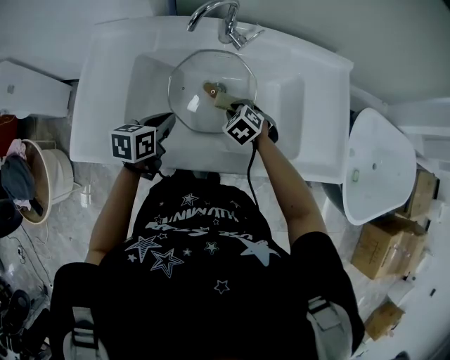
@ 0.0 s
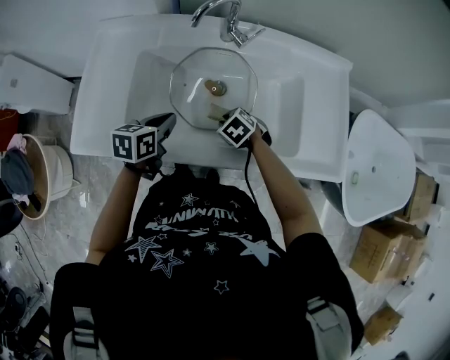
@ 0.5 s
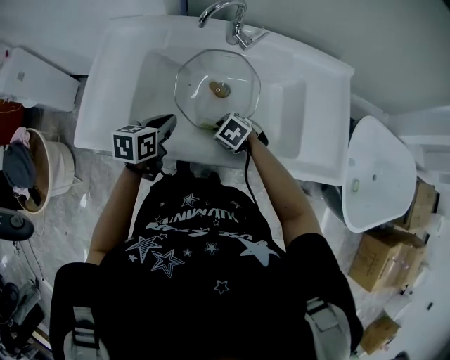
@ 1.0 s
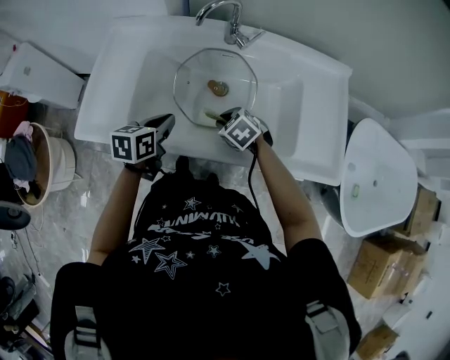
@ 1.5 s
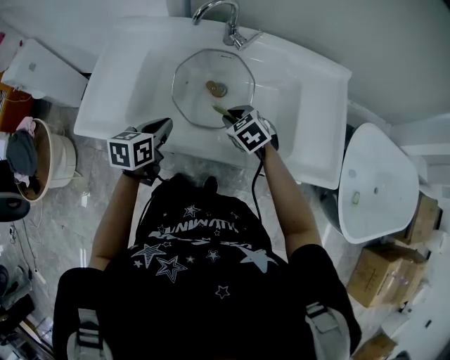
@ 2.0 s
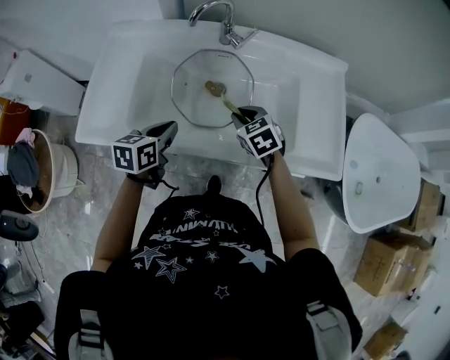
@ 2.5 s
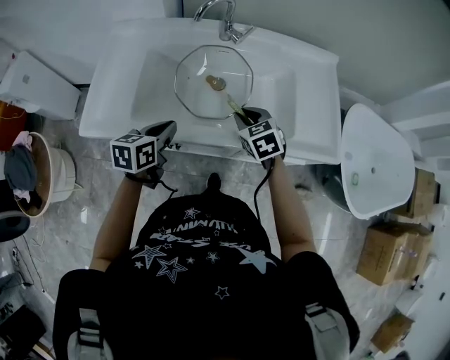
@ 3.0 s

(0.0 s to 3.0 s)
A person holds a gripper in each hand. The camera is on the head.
0.0 s - 1.5 s: The left gripper shifts by approximately 5 cm. The right gripper shifts by approximately 10 cm.
1.5 s - 3.0 s: The right gripper shifts approximately 10 cm upward, and rotates approximately 30 degrees, while the left gripper shifts approximately 5 cm backward.

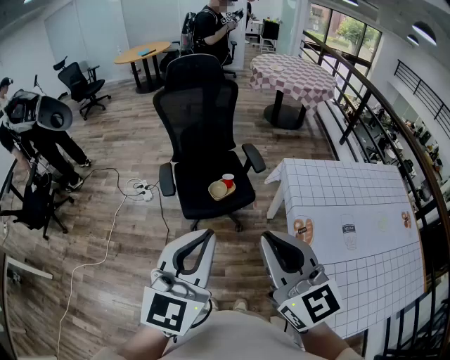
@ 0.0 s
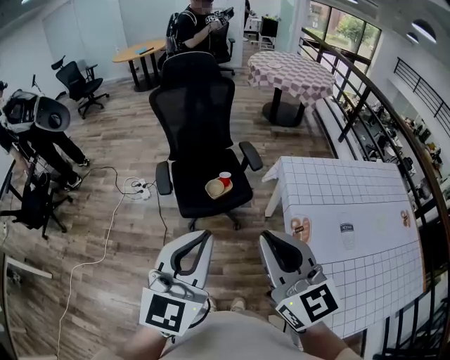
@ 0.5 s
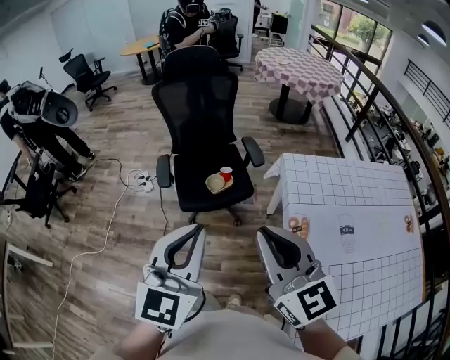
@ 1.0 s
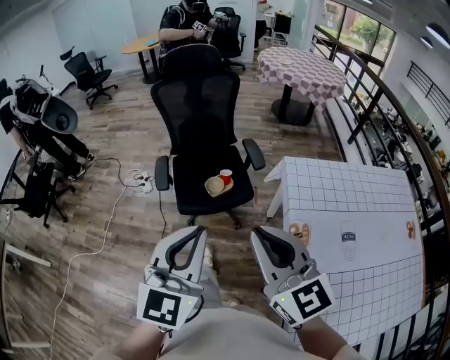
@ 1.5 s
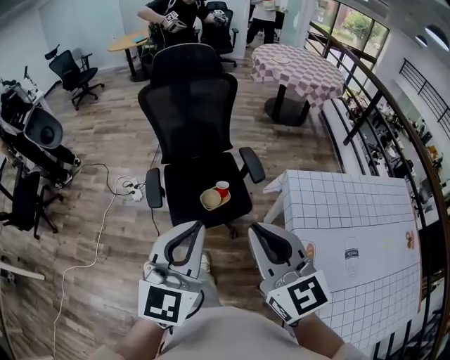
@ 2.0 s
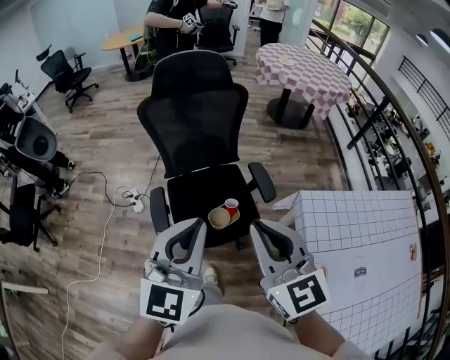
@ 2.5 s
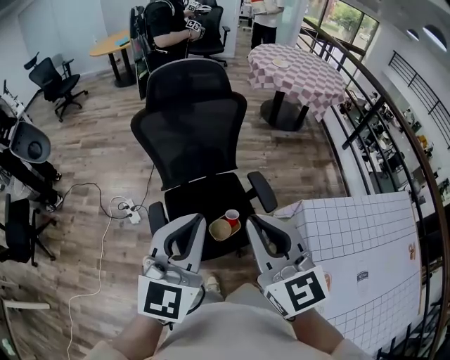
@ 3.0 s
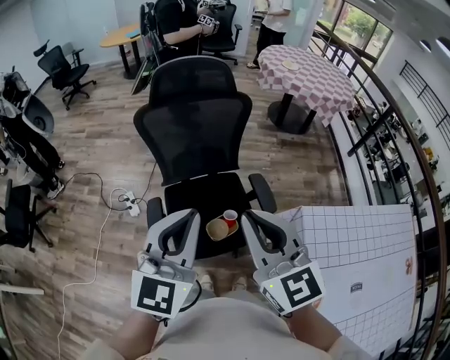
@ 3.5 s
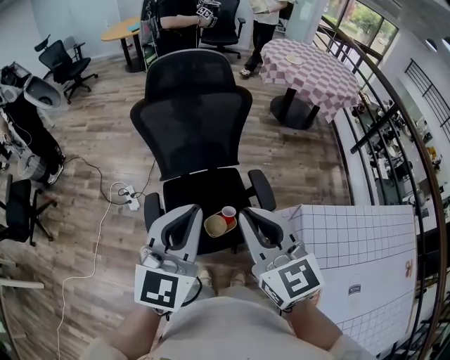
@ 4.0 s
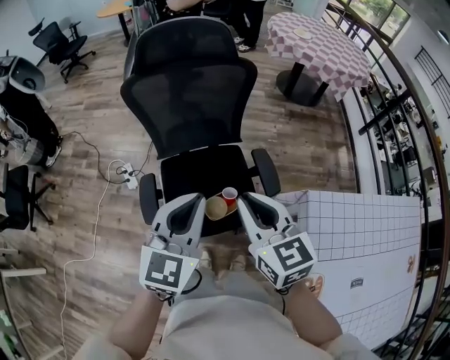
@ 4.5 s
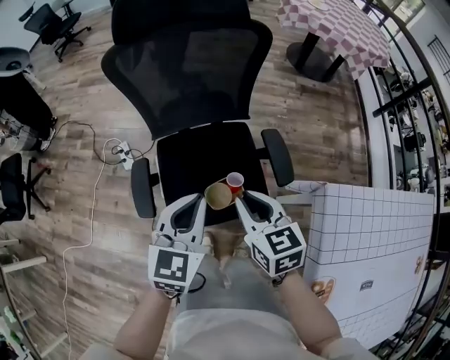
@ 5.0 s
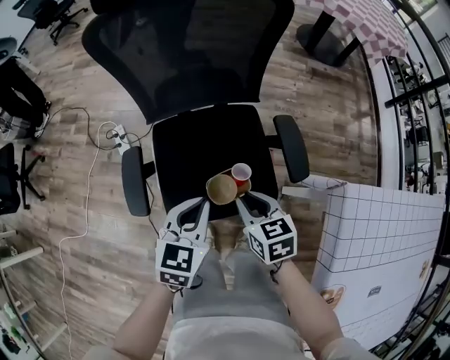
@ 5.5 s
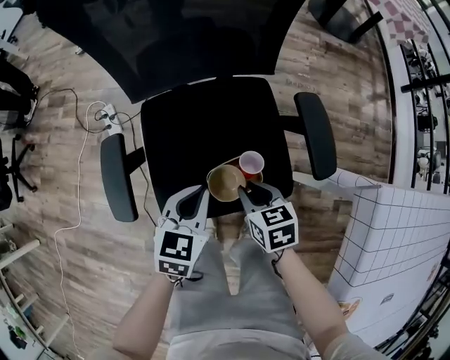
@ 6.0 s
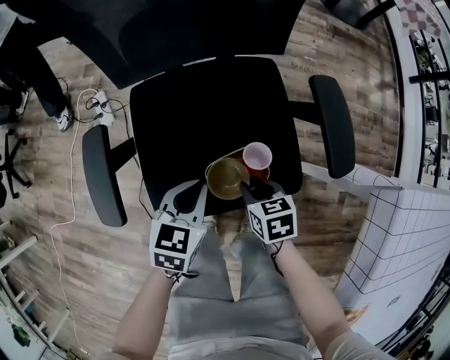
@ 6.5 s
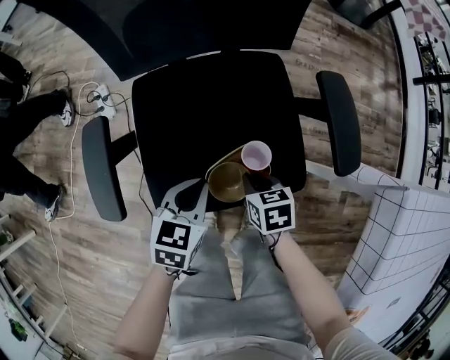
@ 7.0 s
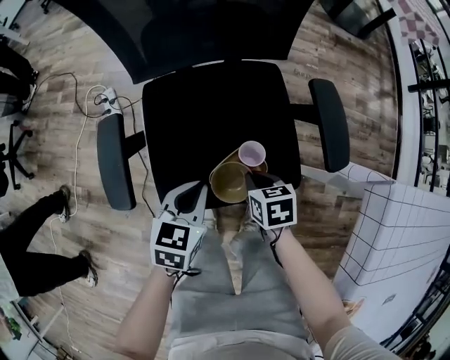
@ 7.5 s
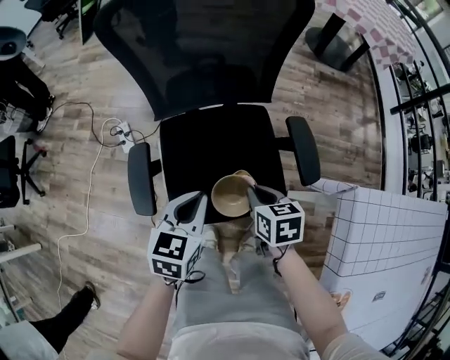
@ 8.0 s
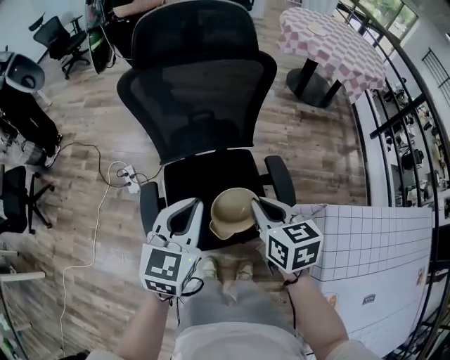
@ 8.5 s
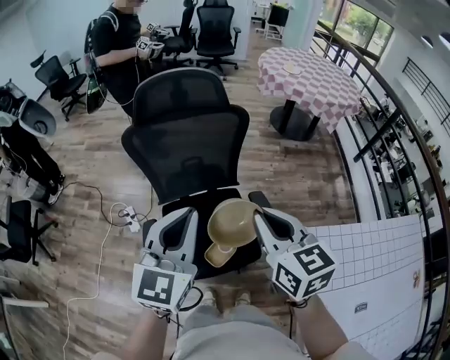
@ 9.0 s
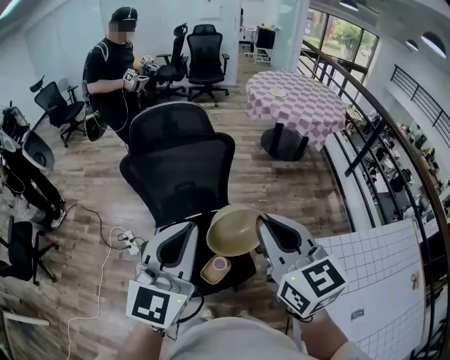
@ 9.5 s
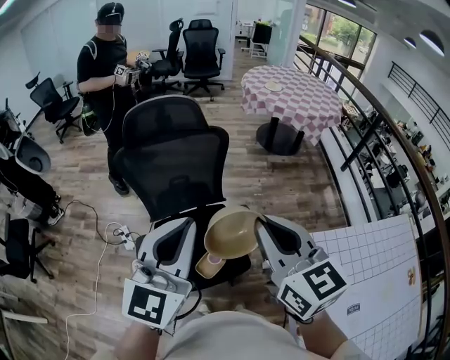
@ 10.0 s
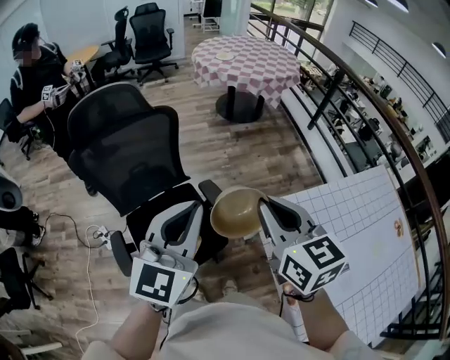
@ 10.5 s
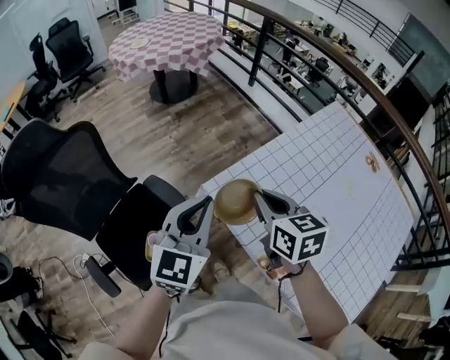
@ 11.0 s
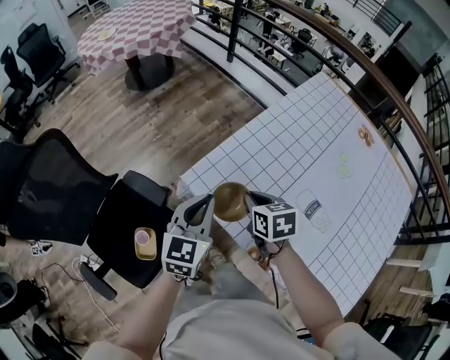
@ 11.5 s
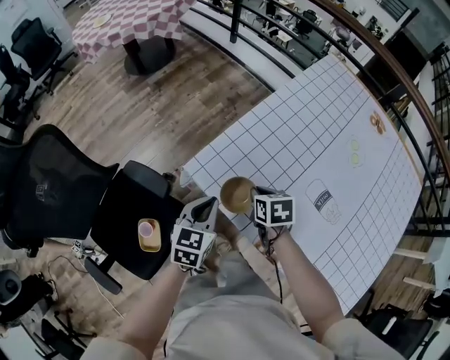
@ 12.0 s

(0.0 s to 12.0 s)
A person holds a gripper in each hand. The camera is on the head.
0.0 s - 2.0 s: Both grippers move forward, approximately 15 cm.
2.0 s - 4.0 s: The two grippers go about 25 cm forward.
4.0 s - 6.0 s: The grippers both shift downward by roughly 60 cm. The right gripper tilts its fingers about 40 degrees downward; the left gripper points its fingers approximately 30 degrees further downward.
6.0 s - 8.0 s: Both grippers move upward, roughly 10 cm.
8.0 s - 10.0 s: The grippers both shift upward by some 50 cm. The right gripper points its fingers about 40 degrees further upward; the left gripper points its fingers about 40 degrees further upward.
10.0 s - 12.0 s: The two grippers go roughly 40 cm downward. The left gripper tilts its fingers roughly 30 degrees downward, while the right gripper angles its fingers downward, by about 50 degrees.

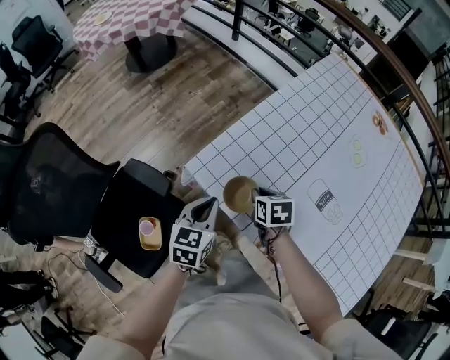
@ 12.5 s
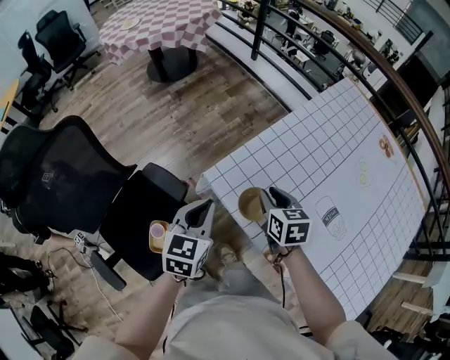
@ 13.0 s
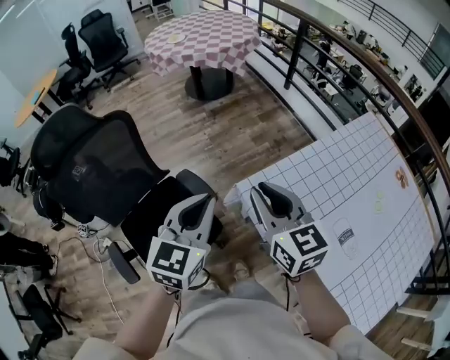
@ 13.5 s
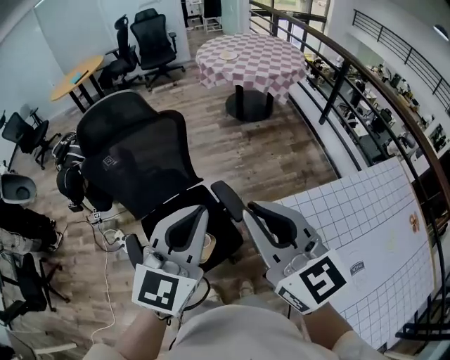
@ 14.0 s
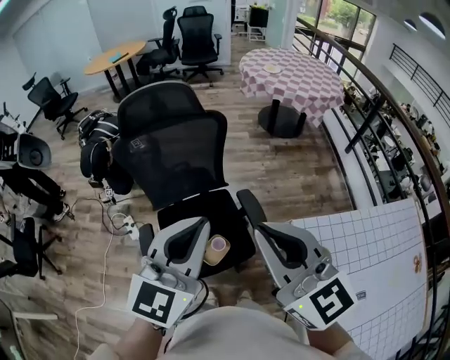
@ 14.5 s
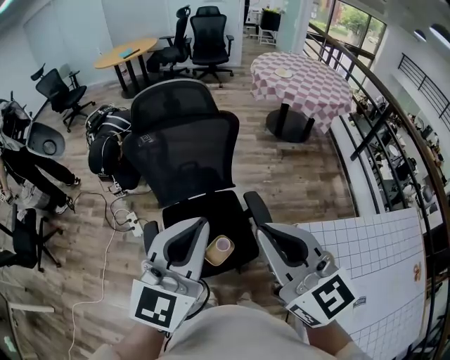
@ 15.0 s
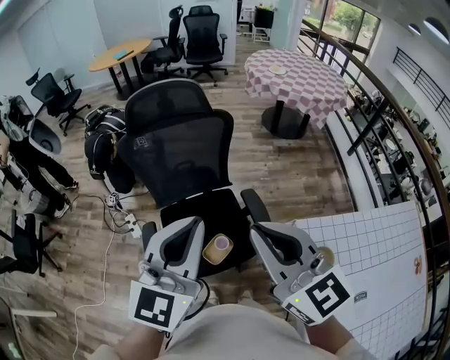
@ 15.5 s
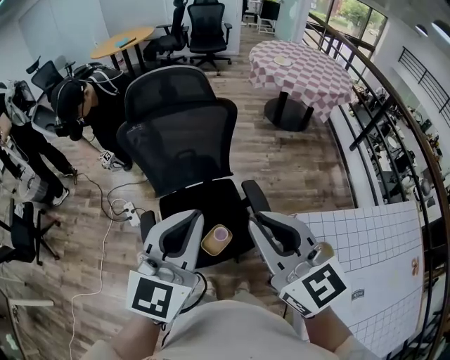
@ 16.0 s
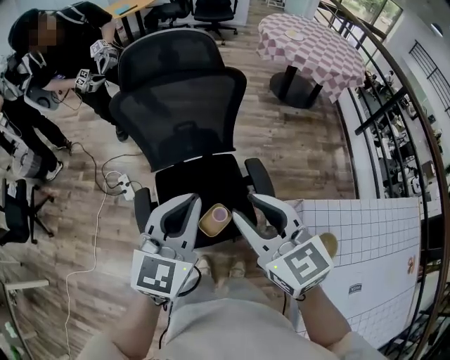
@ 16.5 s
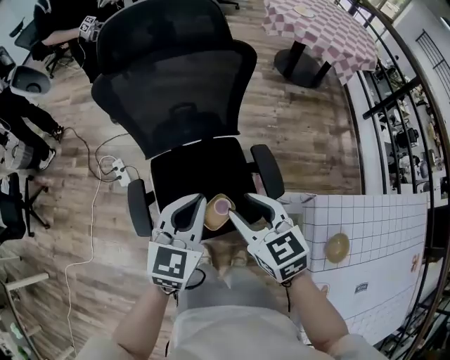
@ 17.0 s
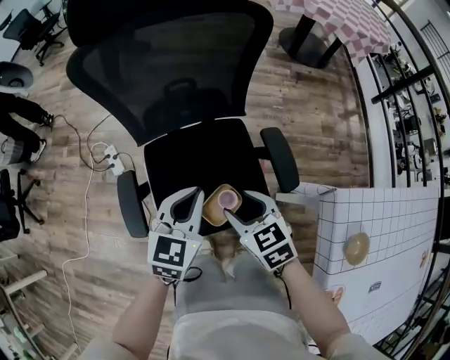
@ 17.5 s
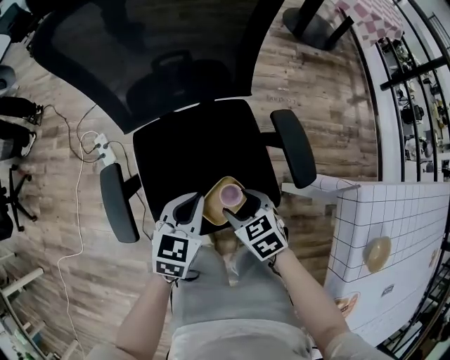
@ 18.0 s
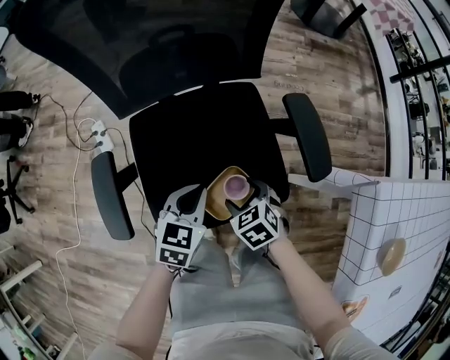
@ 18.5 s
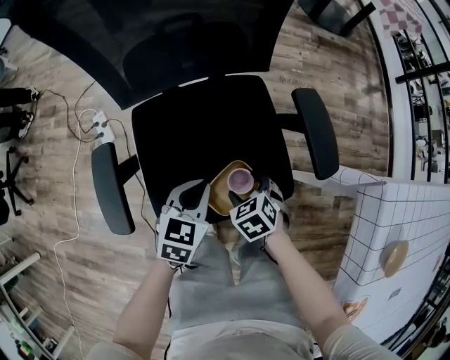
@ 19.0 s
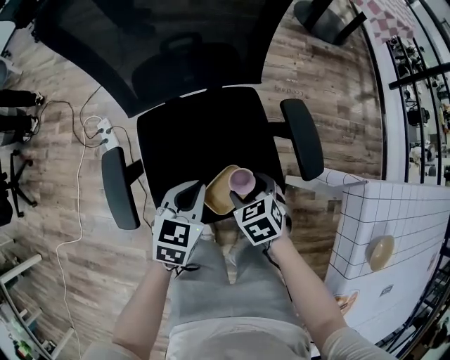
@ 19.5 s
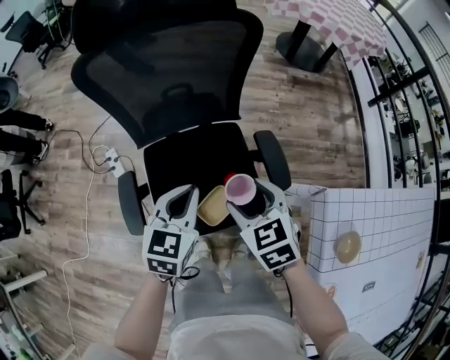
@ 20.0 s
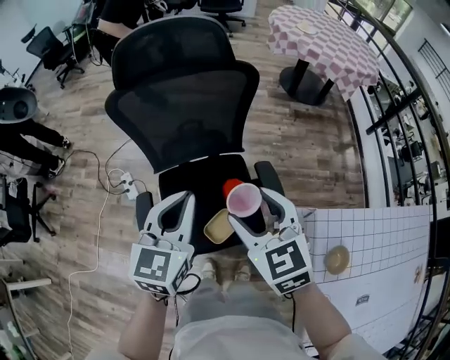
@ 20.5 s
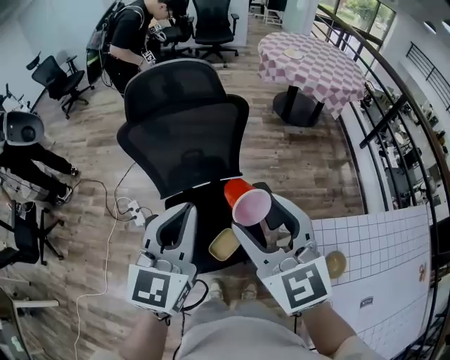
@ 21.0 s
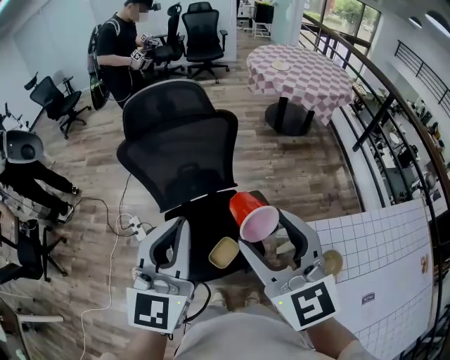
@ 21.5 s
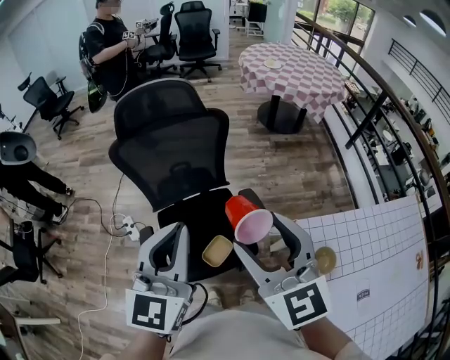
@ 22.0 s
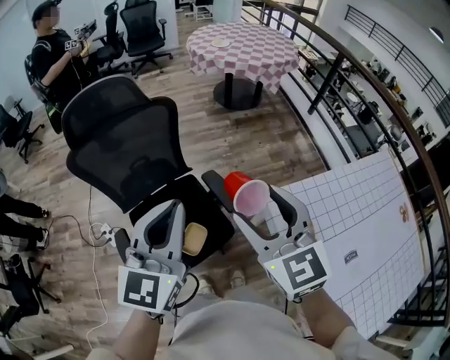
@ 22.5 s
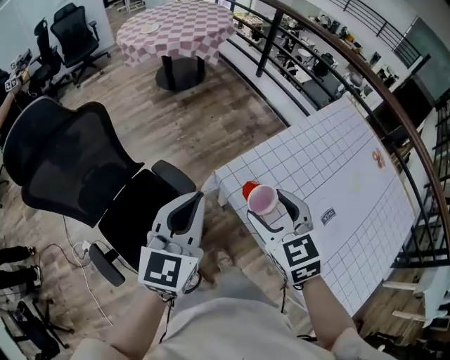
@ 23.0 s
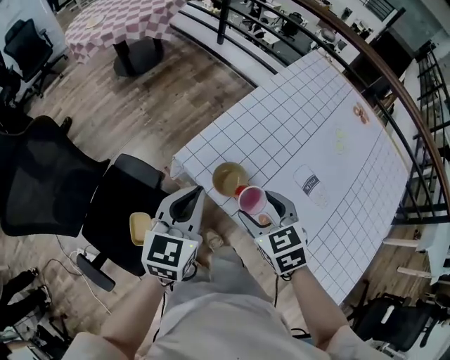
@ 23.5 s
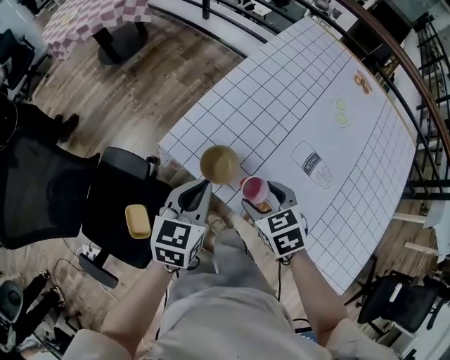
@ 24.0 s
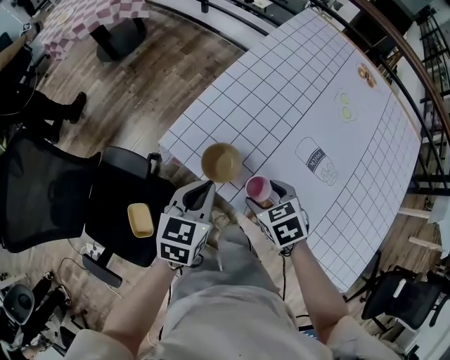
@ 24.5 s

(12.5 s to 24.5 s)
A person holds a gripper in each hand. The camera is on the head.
12.5 s - 14.5 s: Both grippers move upward, some 40 cm. The left gripper swivels roughly 50 degrees. Meanwhile the right gripper tips its fingers upward by roughly 60 degrees.
14.5 s - 16.5 s: Both grippers move downward and forward, about 10 cm. The right gripper rotates approximately 20 degrees, and opens up.
16.5 s - 18.5 s: The two grippers go approximately 60 cm downward. The right gripper tips its fingers downward by some 50 degrees, and opens up, while the left gripper swivels approximately 30 degrees.
18.5 s - 20.5 s: Both grippers move upward, some 50 cm. The left gripper swivels about 30 degrees; the right gripper points its fingers some 30 degrees further upward.
20.5 s - 22.5 s: Both grippers move upward, to the right and backward, approximately 20 cm. The right gripper swivels some 30 degrees; the left gripper rotates about 20 degrees.
22.5 s - 24.5 s: The left gripper shifts by about 50 cm, and points its fingers some 30 degrees further downward. The right gripper goes some 35 cm downward, and points its fingers some 40 degrees further downward.
